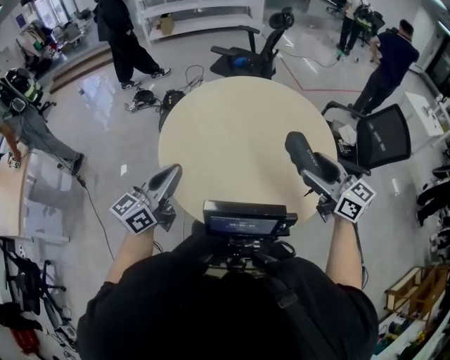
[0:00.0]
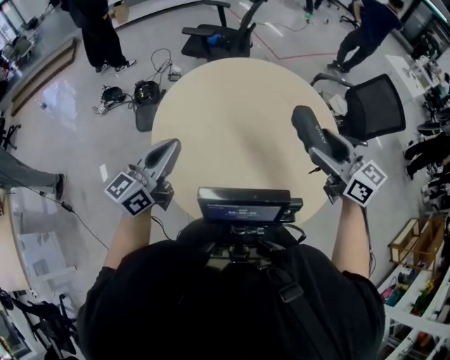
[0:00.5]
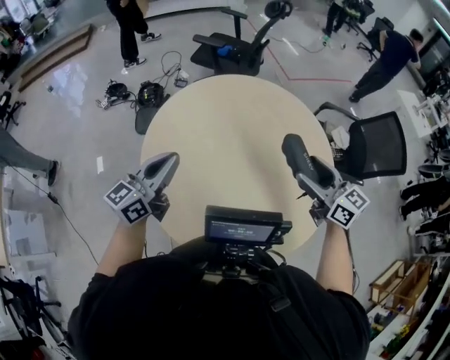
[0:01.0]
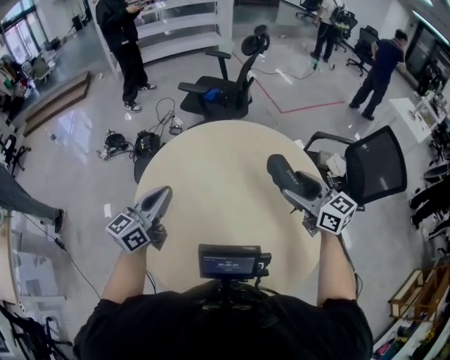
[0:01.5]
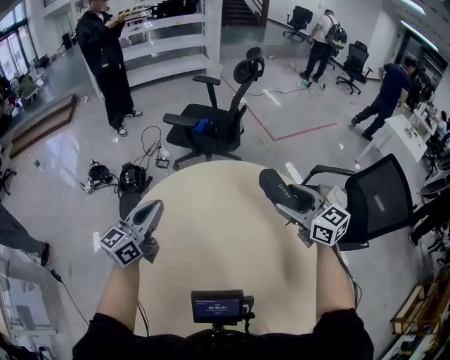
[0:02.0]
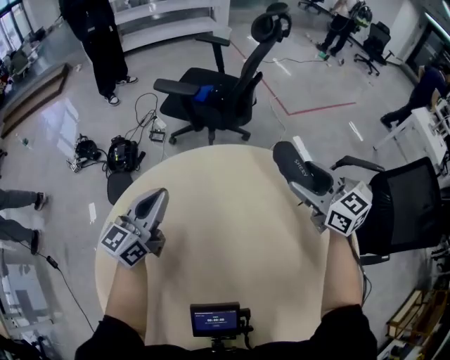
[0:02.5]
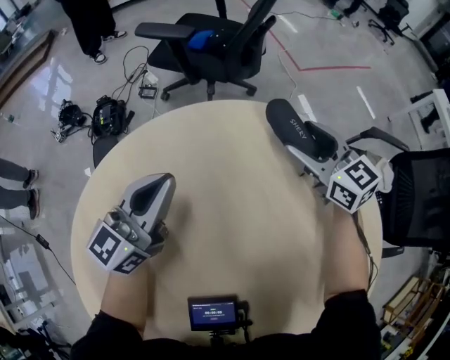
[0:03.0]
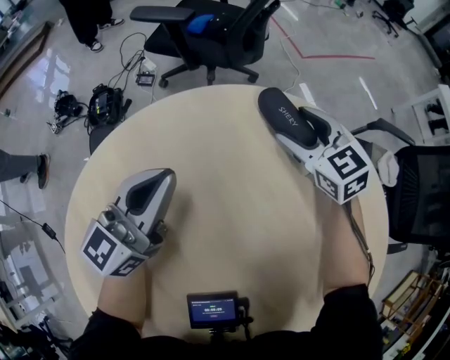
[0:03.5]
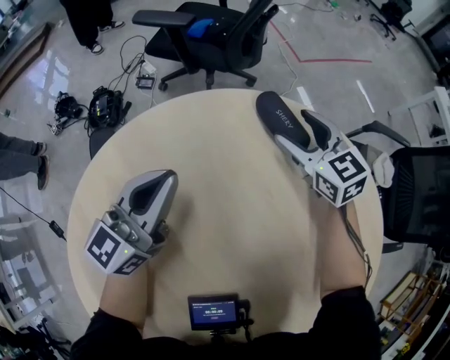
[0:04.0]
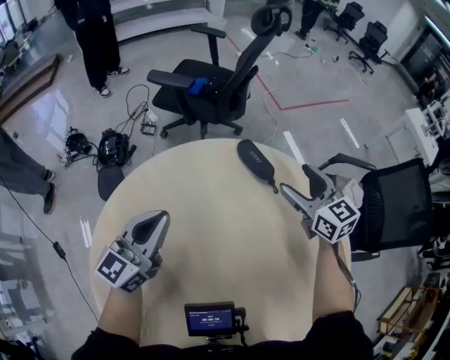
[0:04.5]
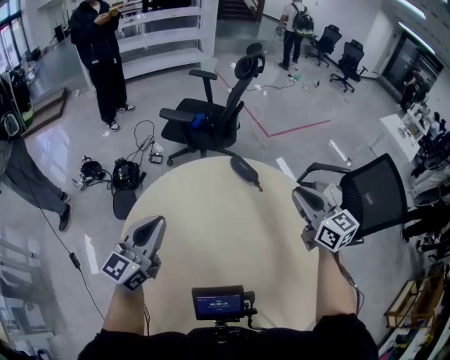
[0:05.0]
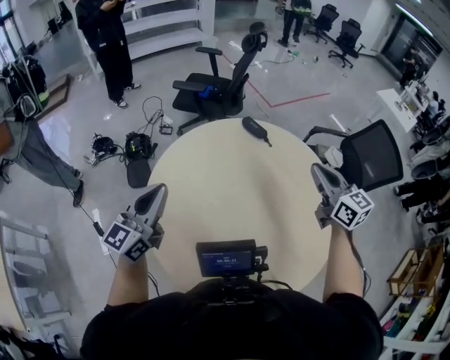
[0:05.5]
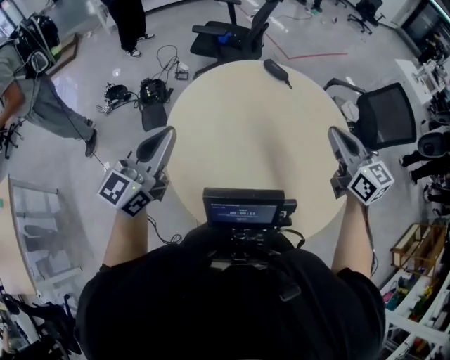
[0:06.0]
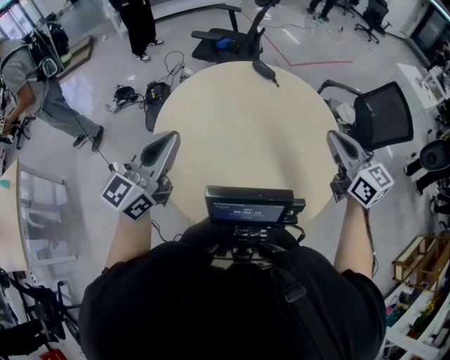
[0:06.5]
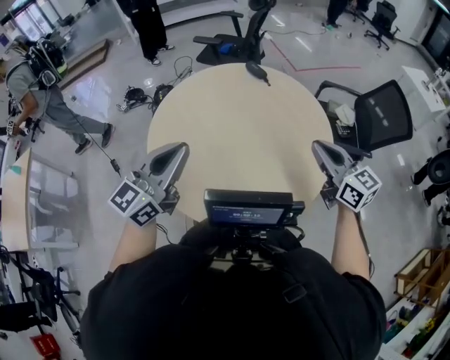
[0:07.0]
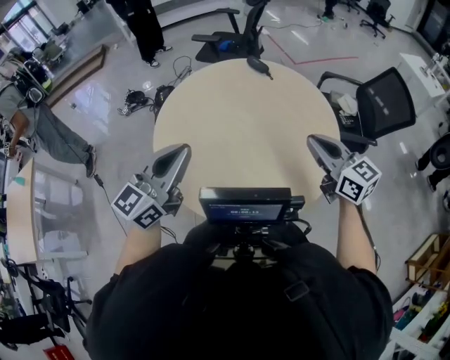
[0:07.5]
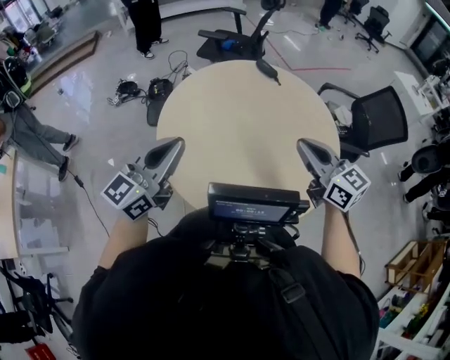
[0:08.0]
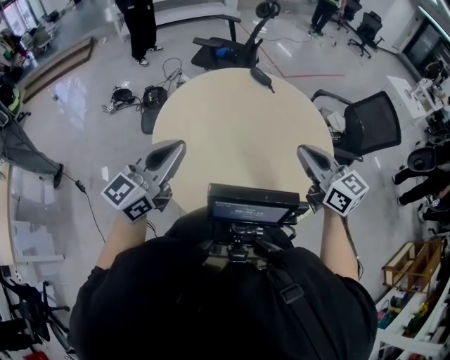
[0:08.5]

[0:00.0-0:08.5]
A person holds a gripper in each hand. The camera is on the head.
0:00.0 to 0:02.0: The pair of grippers is taken forward, approximately 50 cm.
0:02.0 to 0:04.0: The right gripper shifts about 40 cm forward and downward. Meanwhile the left gripper is displaced downward and forward by some 25 cm.
0:04.0 to 0:06.5: Both grippers are carried backward, roughly 60 cm. Both grippers travel together upward, about 35 cm. The right gripper rotates roughly 30 degrees, and closes its fingers.
0:06.5 to 0:08.5: The right gripper shifts about 10 cm to the left and backward; the left gripper is displaced backward by some 5 cm, and reaches roughly 15 cm to the right, then returns.

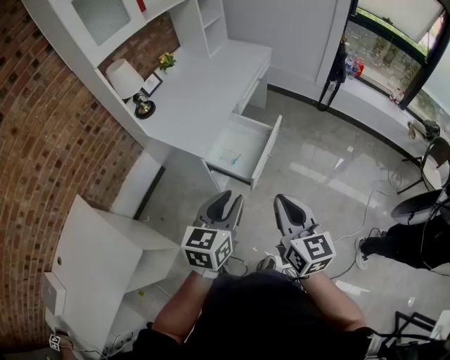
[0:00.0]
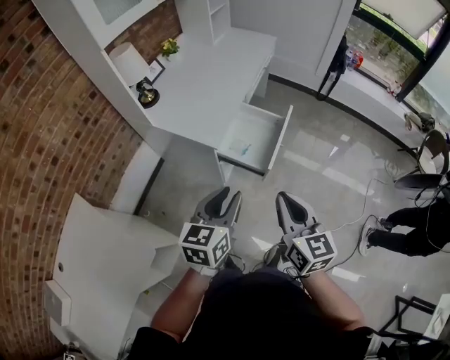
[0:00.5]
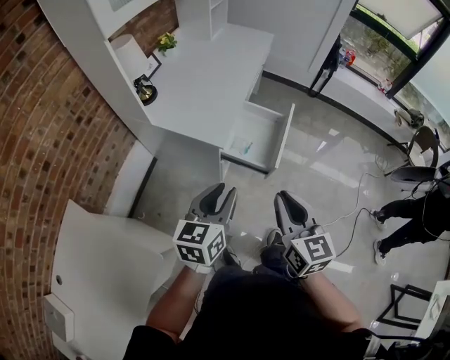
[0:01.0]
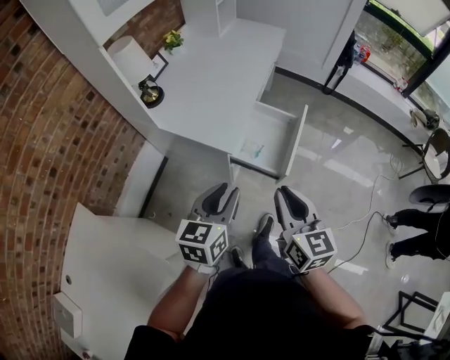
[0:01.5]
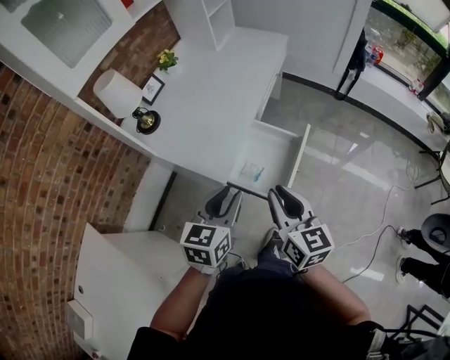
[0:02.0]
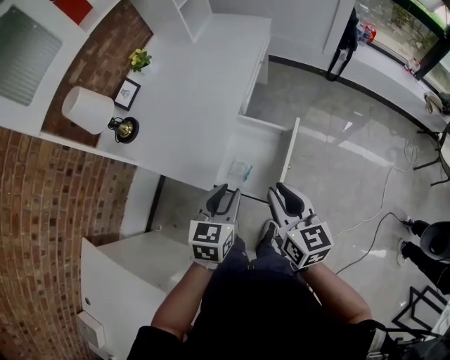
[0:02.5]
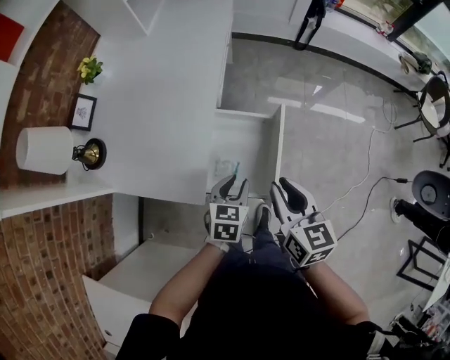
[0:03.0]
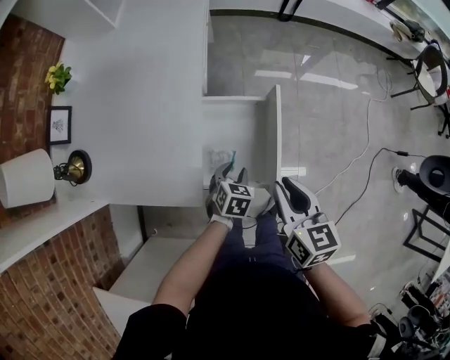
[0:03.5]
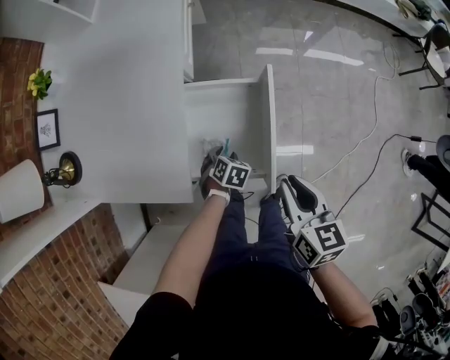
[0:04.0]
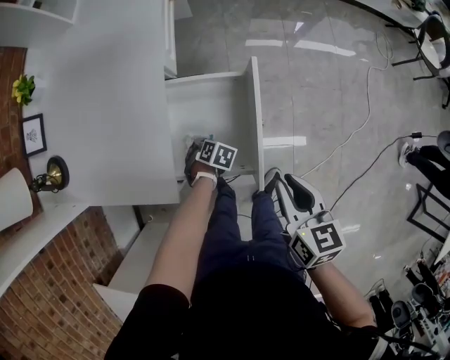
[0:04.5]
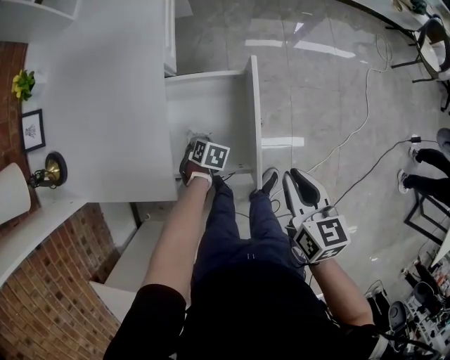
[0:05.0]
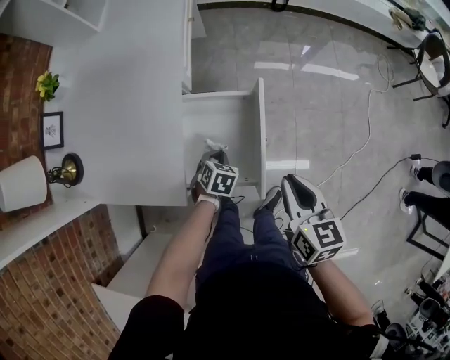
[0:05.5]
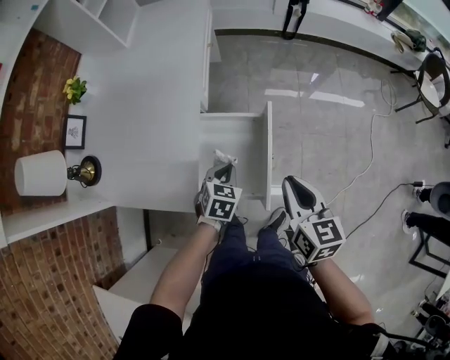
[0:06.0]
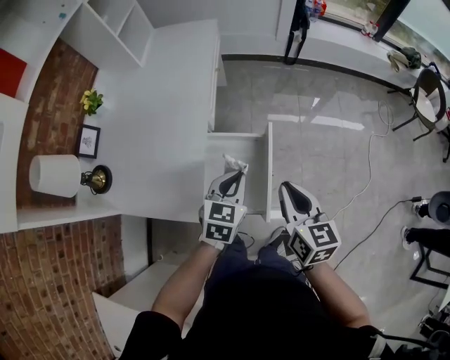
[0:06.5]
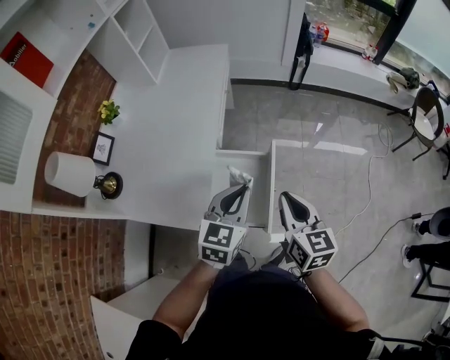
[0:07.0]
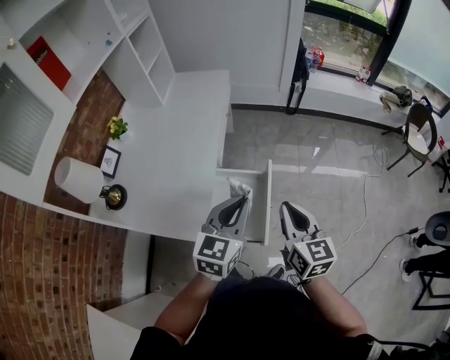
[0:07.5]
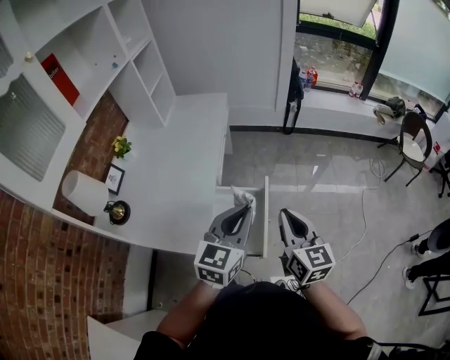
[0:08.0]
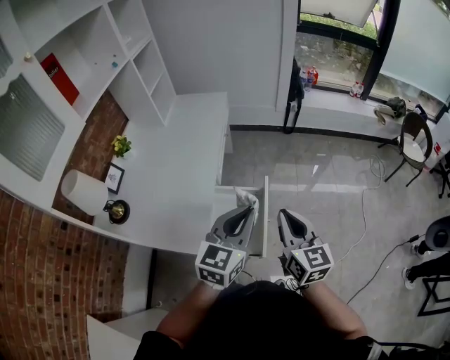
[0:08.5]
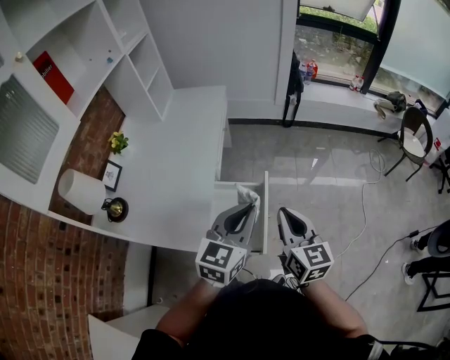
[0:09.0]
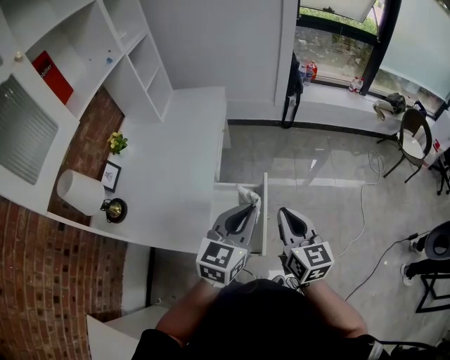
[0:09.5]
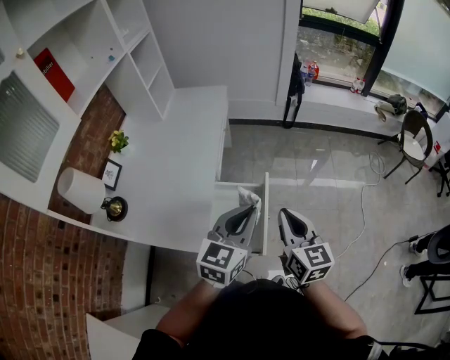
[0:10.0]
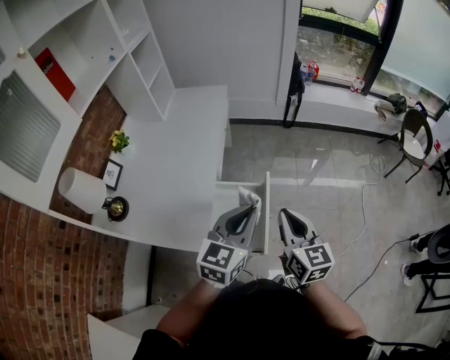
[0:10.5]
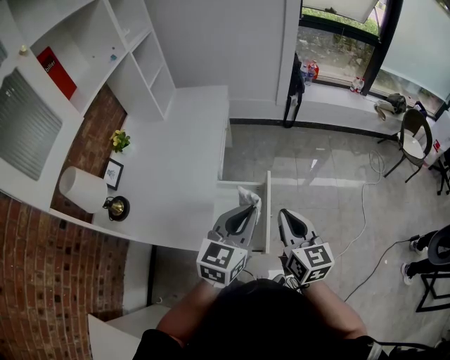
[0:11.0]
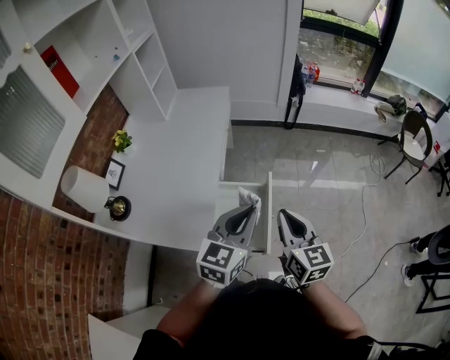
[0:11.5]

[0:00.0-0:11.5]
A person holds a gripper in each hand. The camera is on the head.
0:00.0 to 0:02.0: The grippers both shift forward and to the left by about 25 cm.
0:02.0 to 0:04.0: The left gripper goes about 40 cm downward, and angles its fingers downward, by approximately 50 degrees, while the right gripper heads downward, covering roughly 20 cm, and swivels roughly 40 degrees.
0:04.0 to 0:06.0: The left gripper is displaced upward by some 20 cm, changes its angle by about 20 degrees, and closes up. The right gripper is displaced upward by some 10 cm.
0:06.0 to 0:07.5: The right gripper goes approximately 15 cm upward. The left gripper heads upward, covering approximately 30 cm, and points its fingers about 40 degrees further upward.
0:07.5 to 0:11.5: The grippers make only small movements.

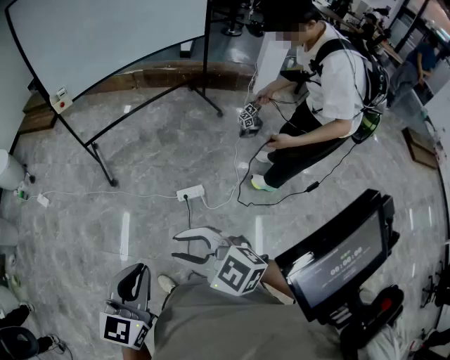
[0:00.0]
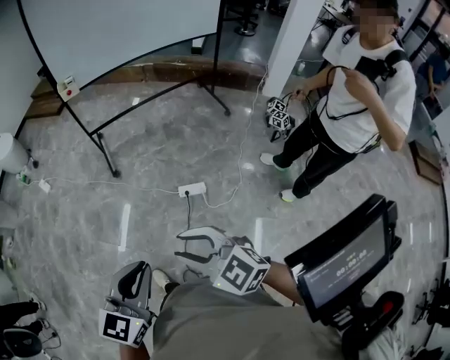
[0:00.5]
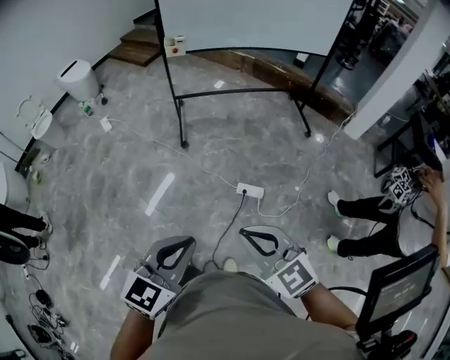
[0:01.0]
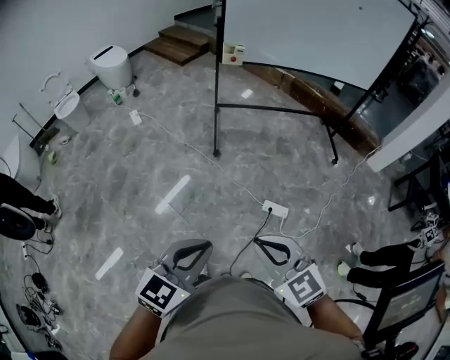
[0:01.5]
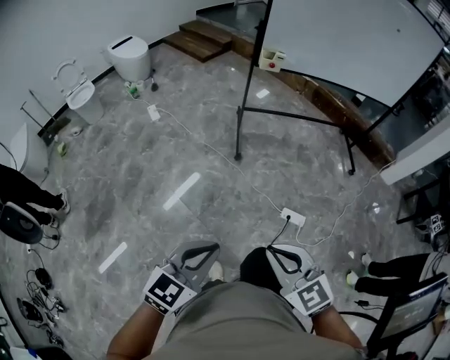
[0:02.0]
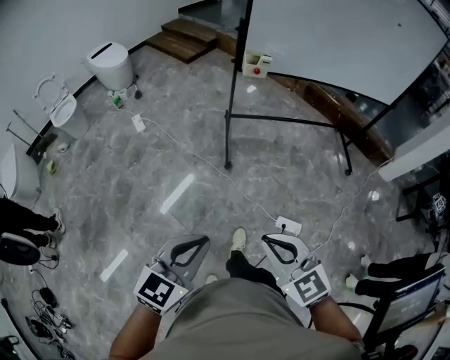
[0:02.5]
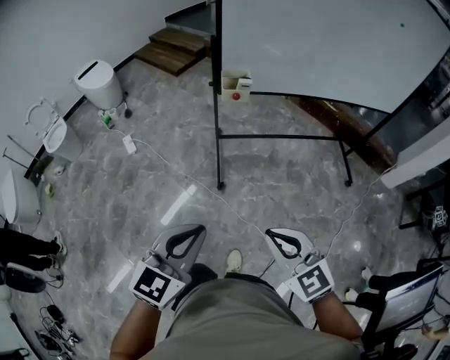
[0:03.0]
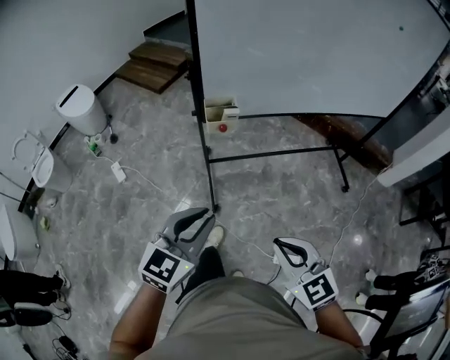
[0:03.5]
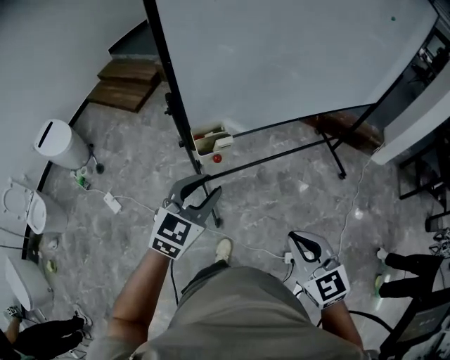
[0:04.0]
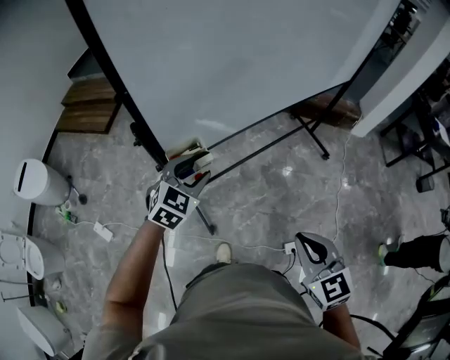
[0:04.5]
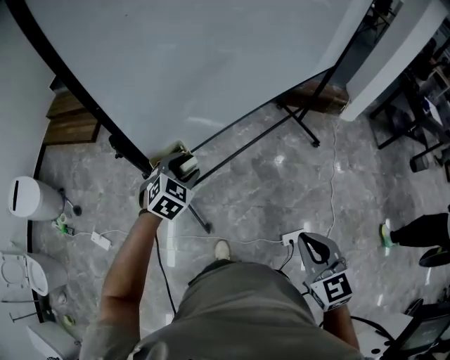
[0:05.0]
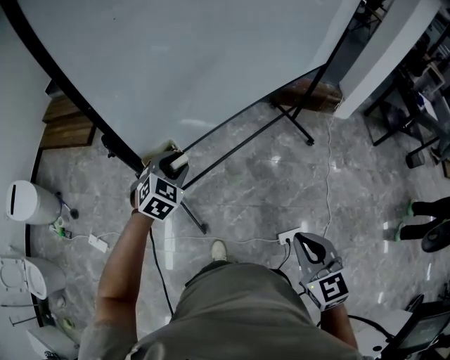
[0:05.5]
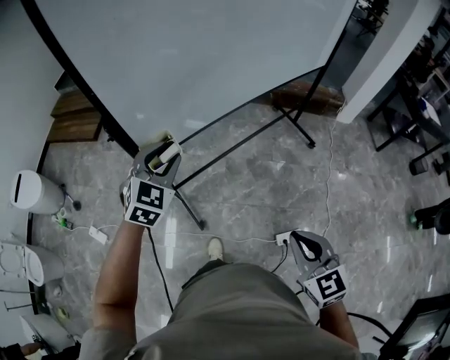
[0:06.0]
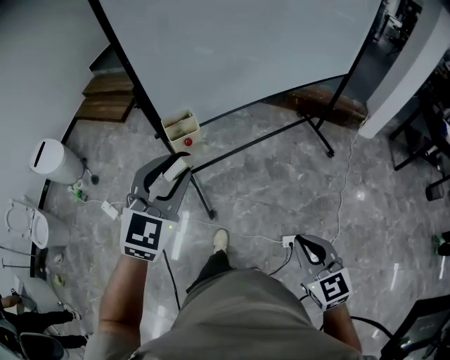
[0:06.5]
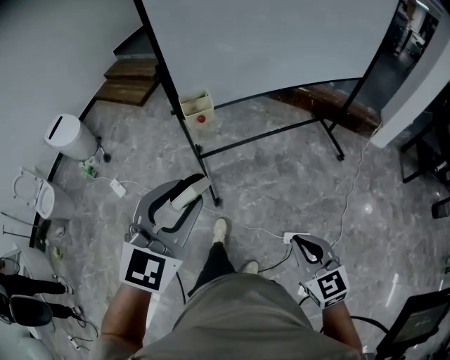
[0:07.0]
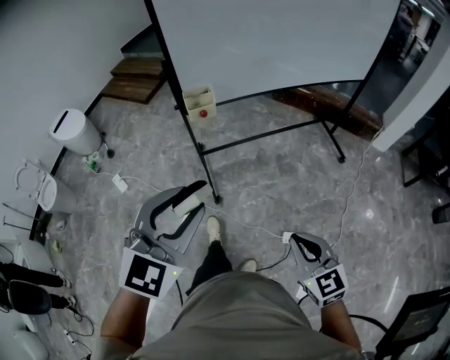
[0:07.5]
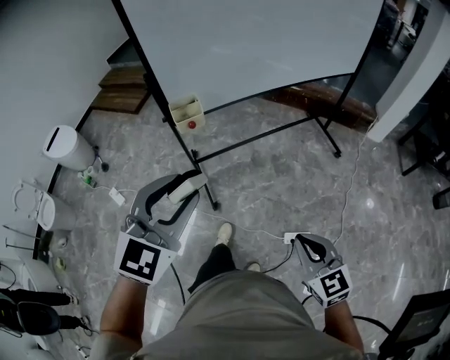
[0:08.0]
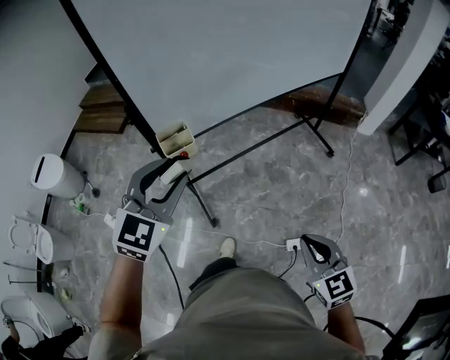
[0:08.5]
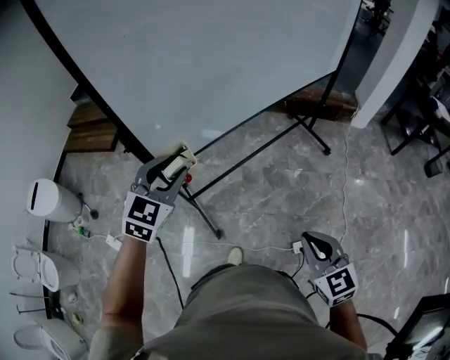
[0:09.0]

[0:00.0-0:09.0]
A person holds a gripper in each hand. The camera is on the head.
0:00.0 to 0:02.0: The right gripper shifts roughly 30 cm to the left and forward, and closes its fingers, while the left gripper is displaced to the left by roughly 30 cm.
0:02.0 to 0:04.5: Both grippers are carried some 80 cm. The right gripper turns by approximately 50 degrees. The left gripper rotates some 40 degrees, and opens up.
0:04.5 to 0:07.0: The left gripper shifts some 40 cm backward and upward, and rotates roughly 20 degrees, while the right gripper heads backward and to the right, covering about 25 cm.
0:07.0 to 0:09.0: The right gripper goes some 15 cm forward, while the left gripper goes approximately 35 cm forward.
